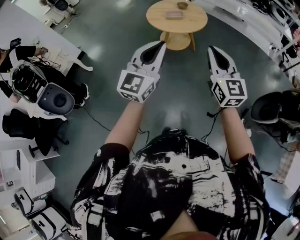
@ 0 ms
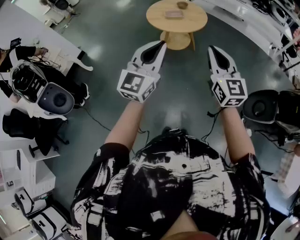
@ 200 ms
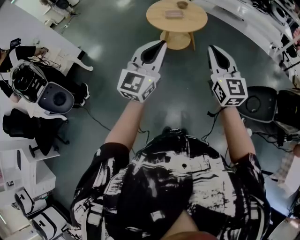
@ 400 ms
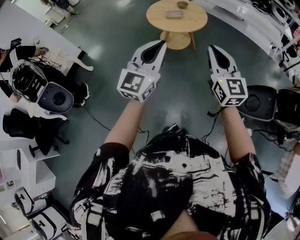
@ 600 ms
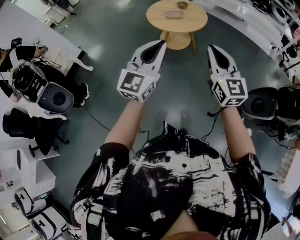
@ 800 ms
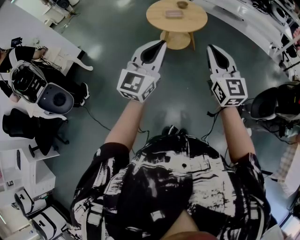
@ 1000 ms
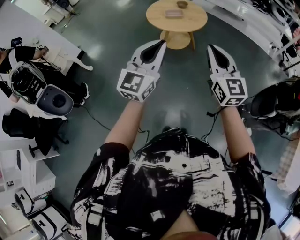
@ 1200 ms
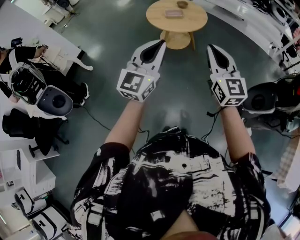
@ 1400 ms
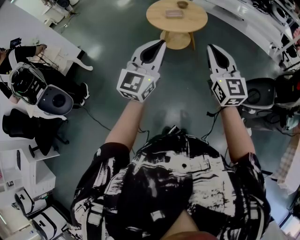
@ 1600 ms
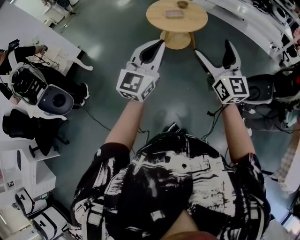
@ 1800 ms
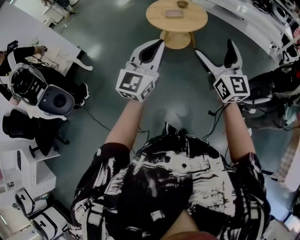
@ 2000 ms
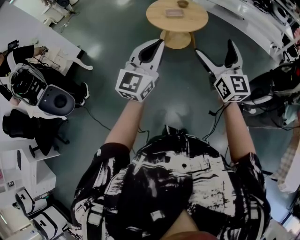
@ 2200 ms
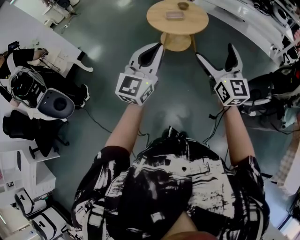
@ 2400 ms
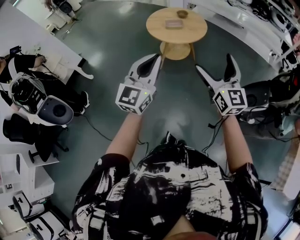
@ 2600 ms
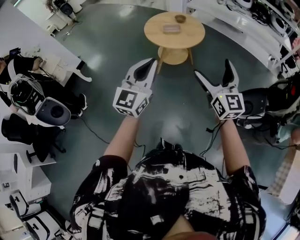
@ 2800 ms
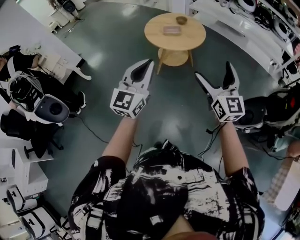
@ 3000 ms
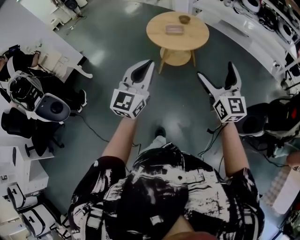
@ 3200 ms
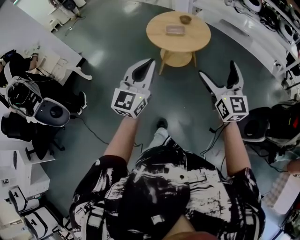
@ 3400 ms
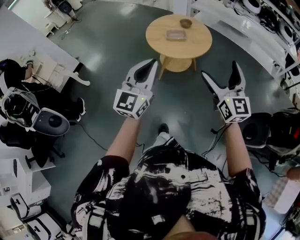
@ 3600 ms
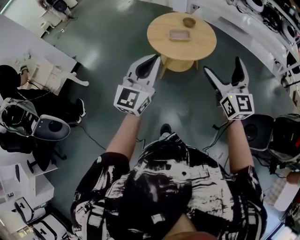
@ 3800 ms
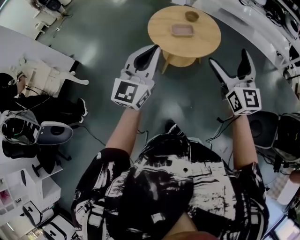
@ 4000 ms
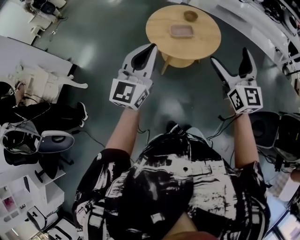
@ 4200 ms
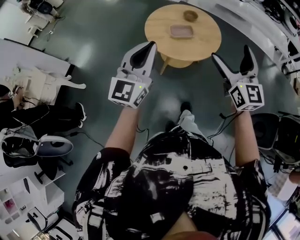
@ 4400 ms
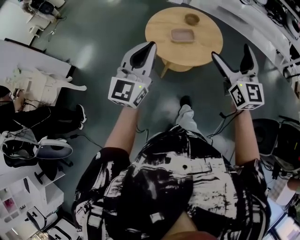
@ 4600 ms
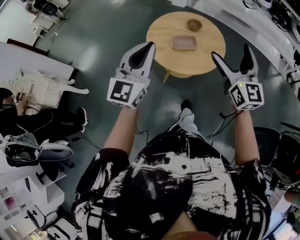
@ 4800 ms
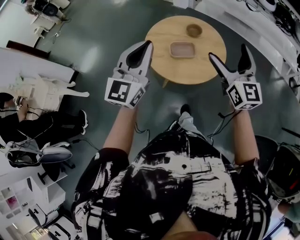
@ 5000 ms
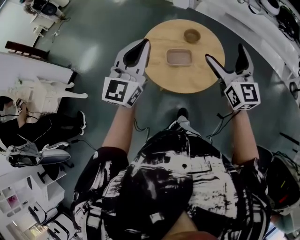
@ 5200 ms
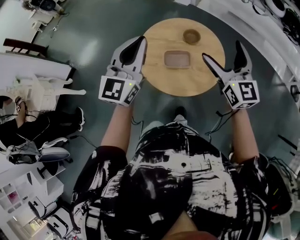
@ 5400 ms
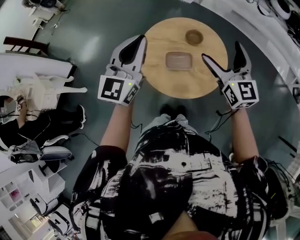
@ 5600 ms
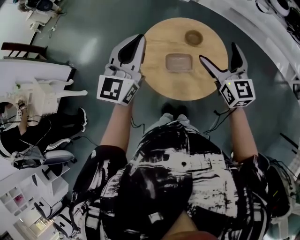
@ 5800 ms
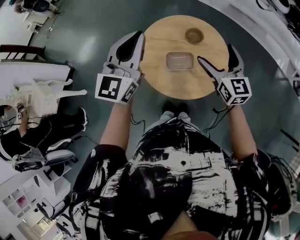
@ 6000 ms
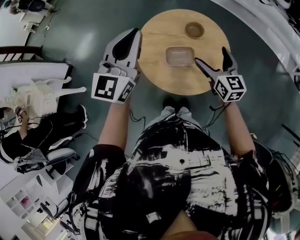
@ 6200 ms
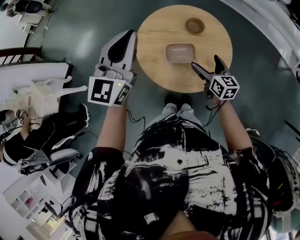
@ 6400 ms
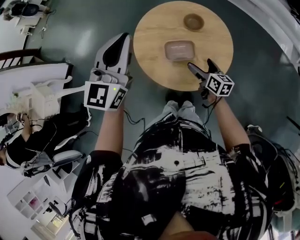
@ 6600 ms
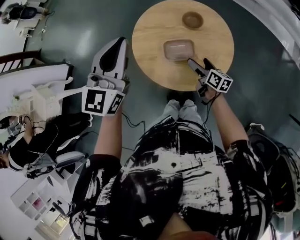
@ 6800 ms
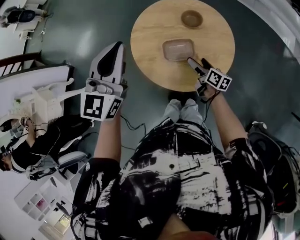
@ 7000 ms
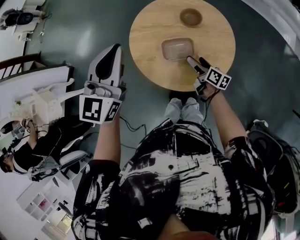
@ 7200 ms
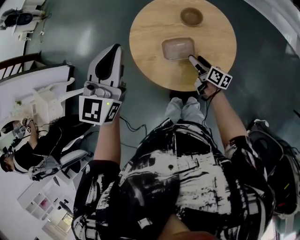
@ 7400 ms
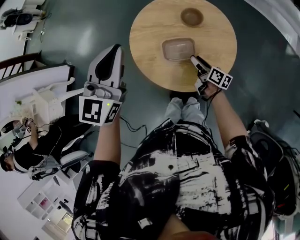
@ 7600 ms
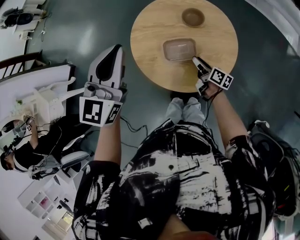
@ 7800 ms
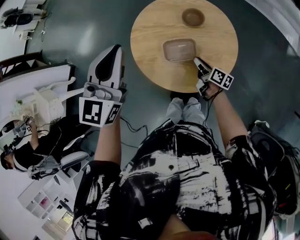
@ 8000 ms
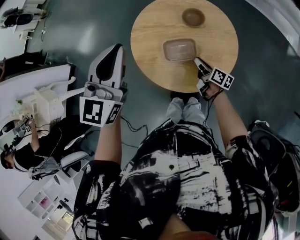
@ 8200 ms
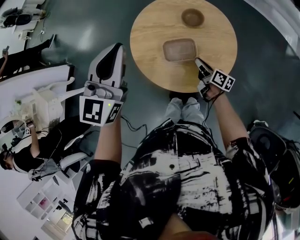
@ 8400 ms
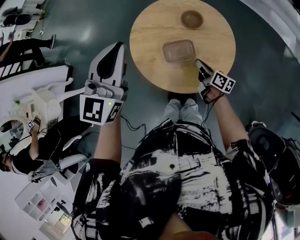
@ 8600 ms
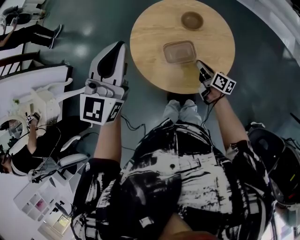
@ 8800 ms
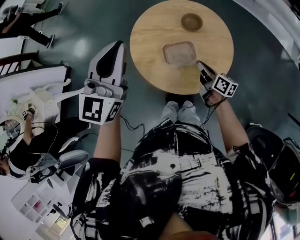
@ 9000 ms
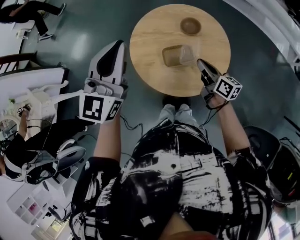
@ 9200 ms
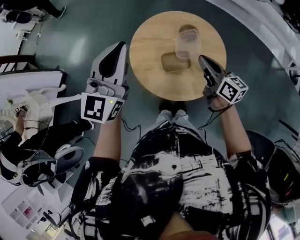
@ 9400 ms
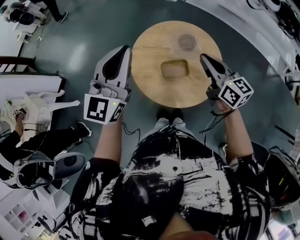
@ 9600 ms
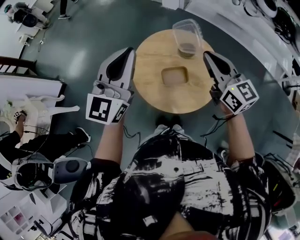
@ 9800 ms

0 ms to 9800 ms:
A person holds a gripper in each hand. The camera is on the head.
0 ms to 1400 ms: The grippers move only a little.
1400 ms to 2800 ms: The left gripper travels forward by some 5 cm. The right gripper moves forward and to the right, some 10 cm, and opens.
2800 ms to 4200 ms: The right gripper goes approximately 35 cm forward. The left gripper moves forward and to the left, roughly 40 cm.
4200 ms to 5600 ms: The pair of grippers is taken forward, about 50 cm.
5600 ms to 7000 ms: The left gripper shifts approximately 10 cm downward and forward. The right gripper shifts roughly 35 cm downward, and rolls clockwise, seen from behind, by some 60 degrees.
7000 ms to 8400 ms: The right gripper closes up.
8400 ms to 9800 ms: The left gripper goes approximately 15 cm upward. The right gripper heads upward, covering some 40 cm, and rotates around the line of its fingers by about 60 degrees, counterclockwise from behind.

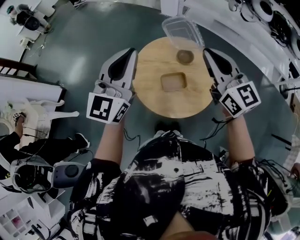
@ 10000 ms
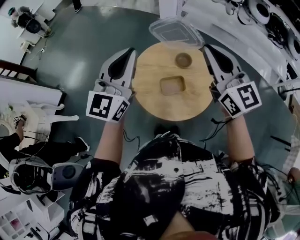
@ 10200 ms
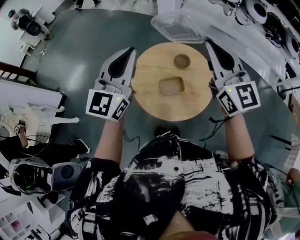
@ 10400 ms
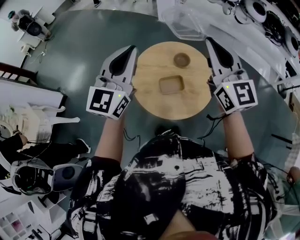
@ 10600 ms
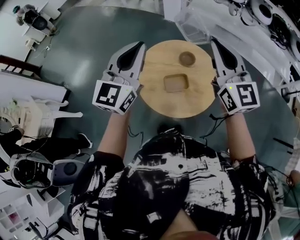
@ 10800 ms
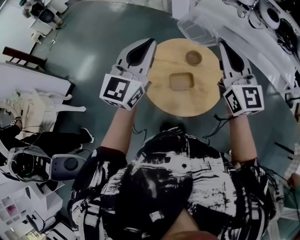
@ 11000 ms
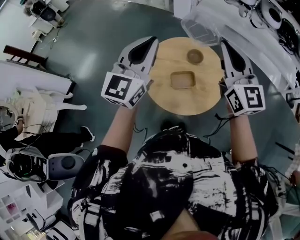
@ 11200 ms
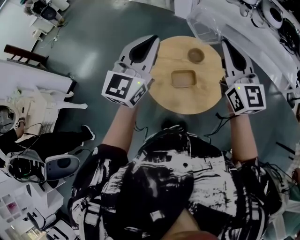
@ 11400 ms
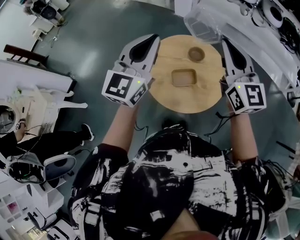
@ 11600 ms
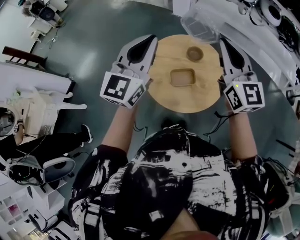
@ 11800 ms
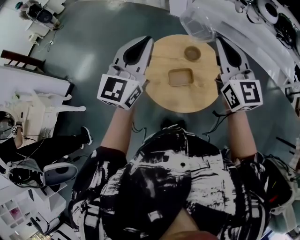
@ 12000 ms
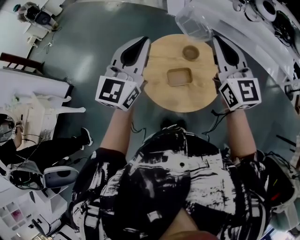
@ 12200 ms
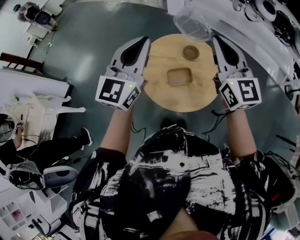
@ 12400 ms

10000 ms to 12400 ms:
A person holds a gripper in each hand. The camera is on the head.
10000 ms to 11200 ms: The right gripper moves upward, some 5 cm.
11200 ms to 12400 ms: The grippers move only a little.

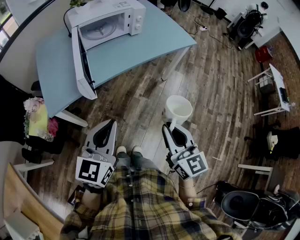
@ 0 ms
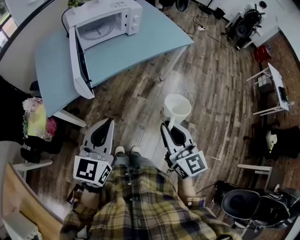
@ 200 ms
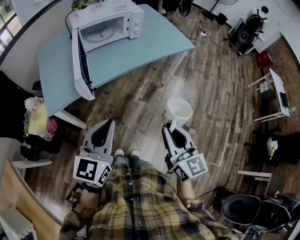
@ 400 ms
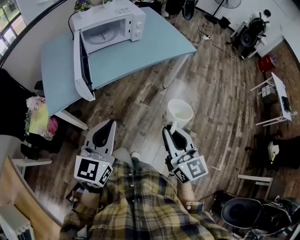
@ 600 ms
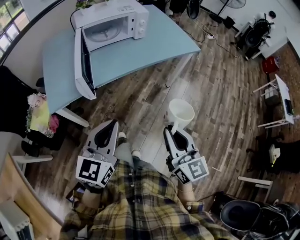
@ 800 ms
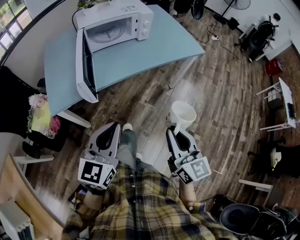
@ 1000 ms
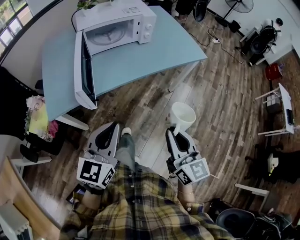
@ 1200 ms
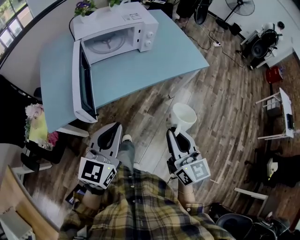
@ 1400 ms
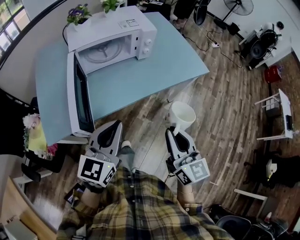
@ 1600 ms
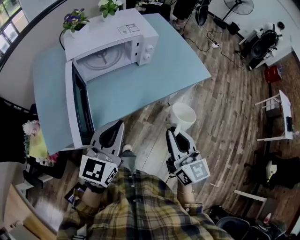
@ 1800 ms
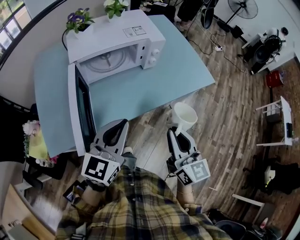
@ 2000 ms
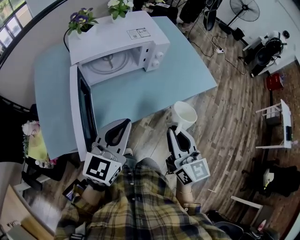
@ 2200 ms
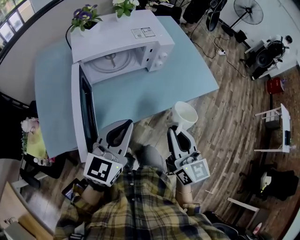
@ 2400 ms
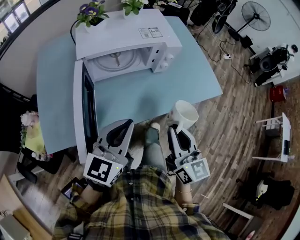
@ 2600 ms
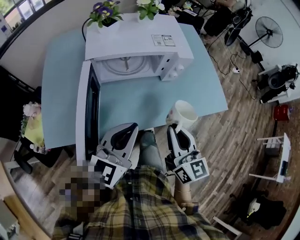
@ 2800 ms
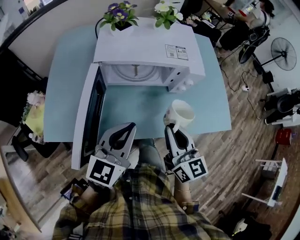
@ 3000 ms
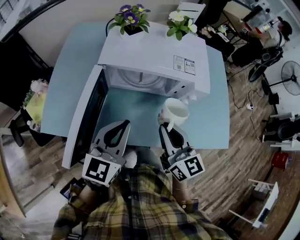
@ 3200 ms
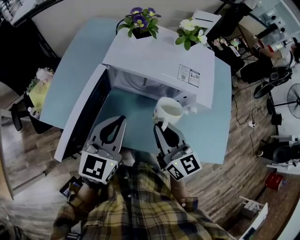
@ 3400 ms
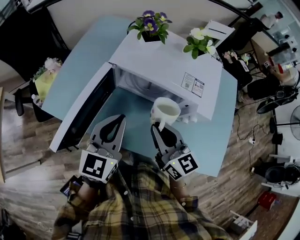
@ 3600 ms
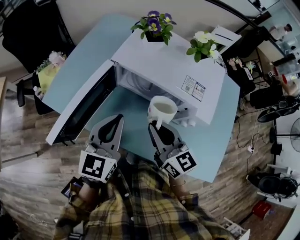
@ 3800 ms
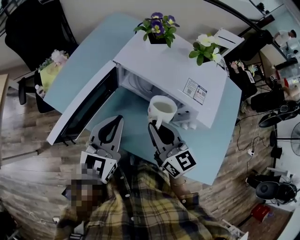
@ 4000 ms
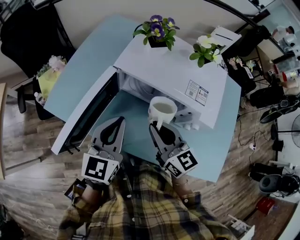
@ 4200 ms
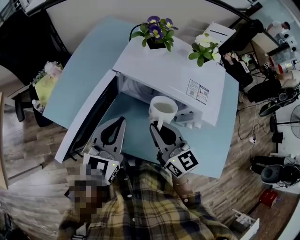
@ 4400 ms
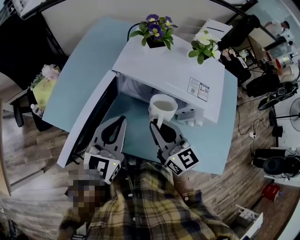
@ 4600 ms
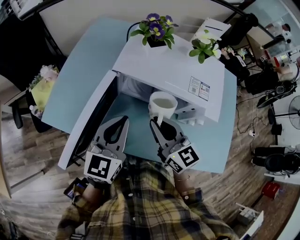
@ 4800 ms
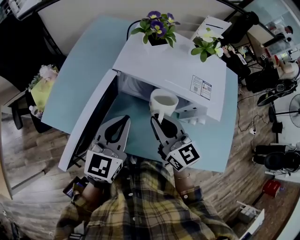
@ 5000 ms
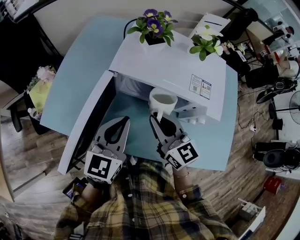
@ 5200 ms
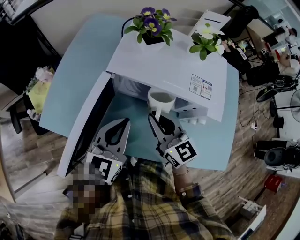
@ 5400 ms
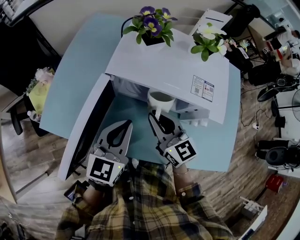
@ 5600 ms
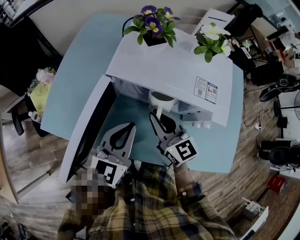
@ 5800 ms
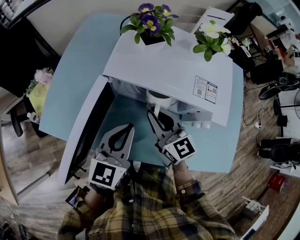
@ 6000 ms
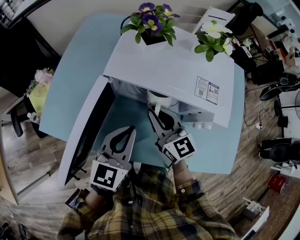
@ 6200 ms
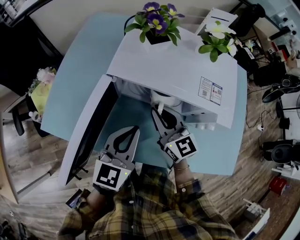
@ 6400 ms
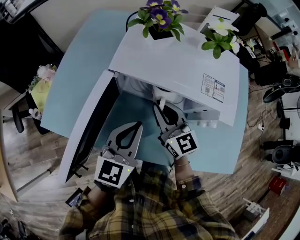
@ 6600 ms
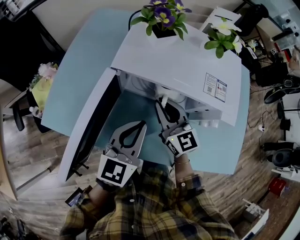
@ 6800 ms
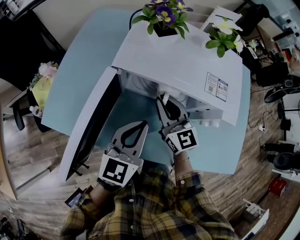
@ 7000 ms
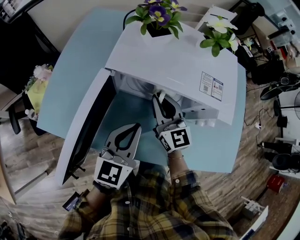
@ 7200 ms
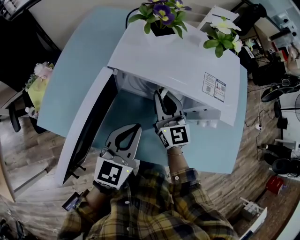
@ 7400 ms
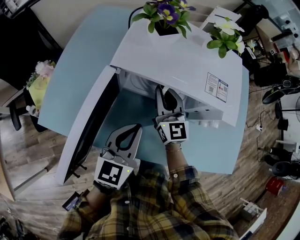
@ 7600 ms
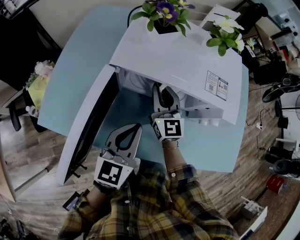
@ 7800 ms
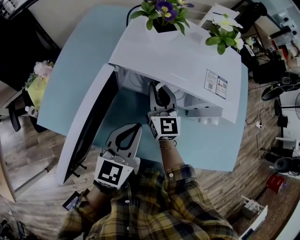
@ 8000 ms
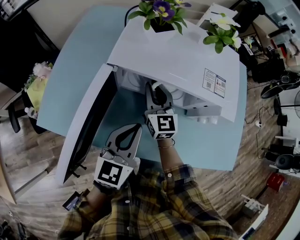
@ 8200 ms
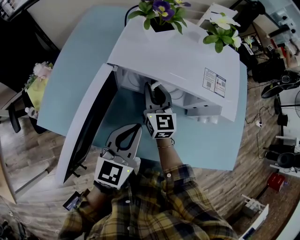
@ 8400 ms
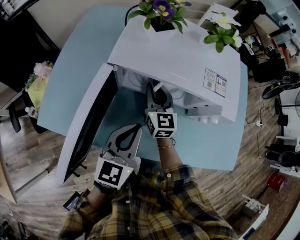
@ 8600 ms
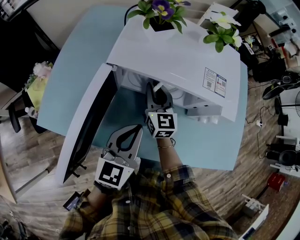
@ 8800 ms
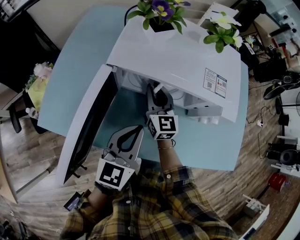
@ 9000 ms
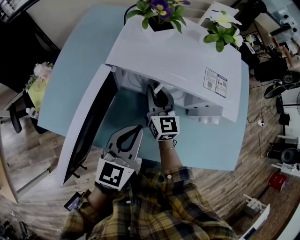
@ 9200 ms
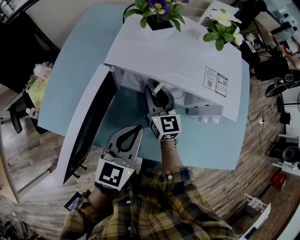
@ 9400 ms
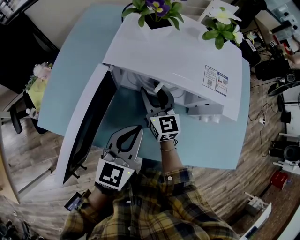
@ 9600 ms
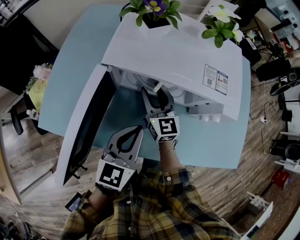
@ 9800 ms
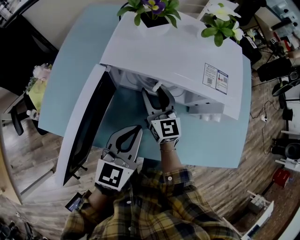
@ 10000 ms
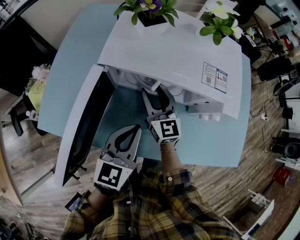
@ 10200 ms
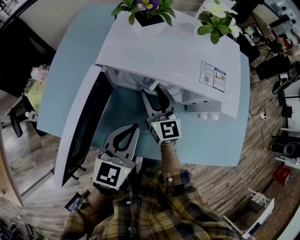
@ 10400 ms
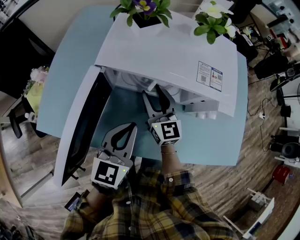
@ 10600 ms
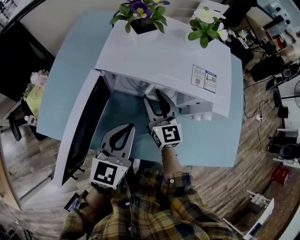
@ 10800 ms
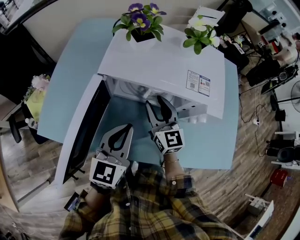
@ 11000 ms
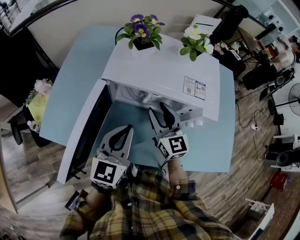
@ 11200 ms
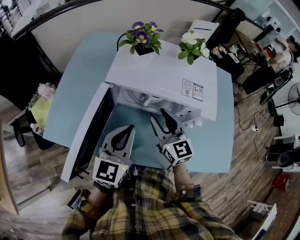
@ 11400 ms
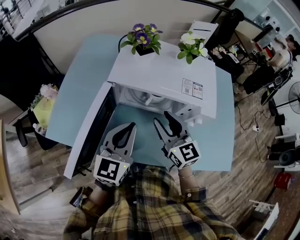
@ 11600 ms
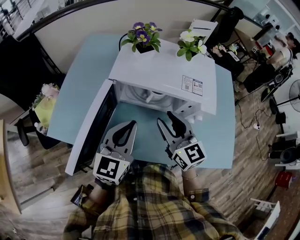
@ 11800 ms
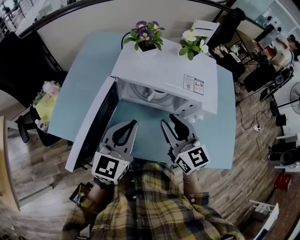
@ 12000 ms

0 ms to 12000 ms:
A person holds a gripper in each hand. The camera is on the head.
0 ms to 1600 ms: Both grippers travel together forward, approximately 20 cm.
1600 ms to 3000 ms: The grippers both shift forward by about 20 cm. The right gripper turns by approximately 20 degrees.
3000 ms to 4400 ms: The left gripper shifts by roughly 10 cm, and changes its angle by approximately 30 degrees. Meanwhile the right gripper ends up some 15 cm from where it was, and turns by about 40 degrees.
4400 ms to 6000 ms: The right gripper is displaced forward and downward by approximately 10 cm. The left gripper travels downward by approximately 5 cm.
6000 ms to 7600 ms: The right gripper moves forward, approximately 5 cm.
7600 ms to 9000 ms: The grippers make only small movements.
9000 ms to 10400 ms: The right gripper opens its fingers.
10400 ms to 12000 ms: The left gripper is displaced upward by roughly 10 cm. Meanwhile the right gripper travels upward and backward by roughly 20 cm.
